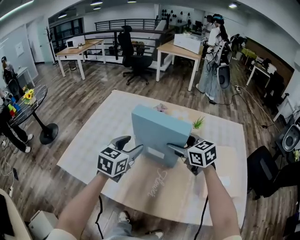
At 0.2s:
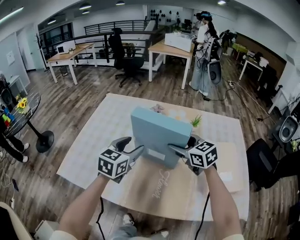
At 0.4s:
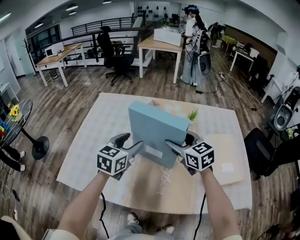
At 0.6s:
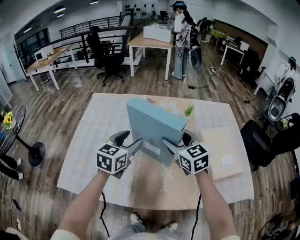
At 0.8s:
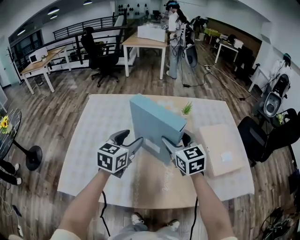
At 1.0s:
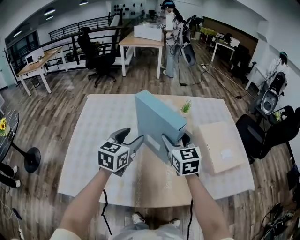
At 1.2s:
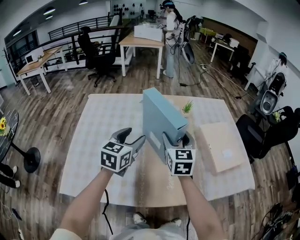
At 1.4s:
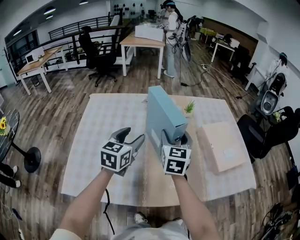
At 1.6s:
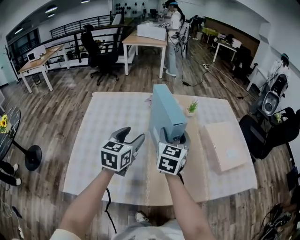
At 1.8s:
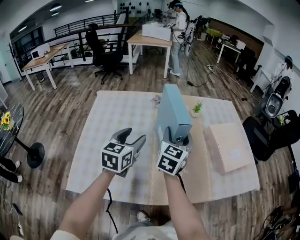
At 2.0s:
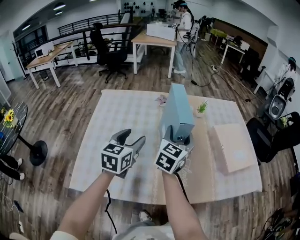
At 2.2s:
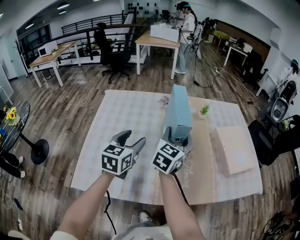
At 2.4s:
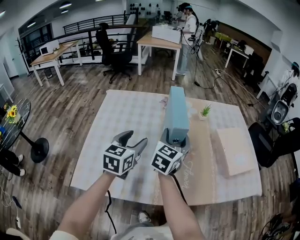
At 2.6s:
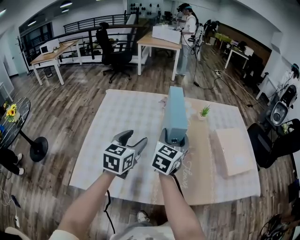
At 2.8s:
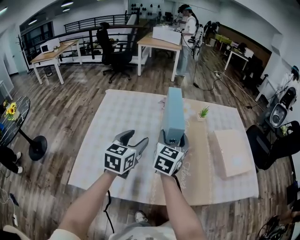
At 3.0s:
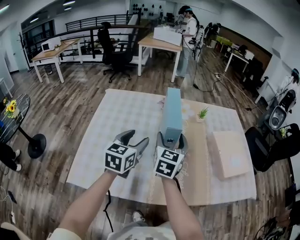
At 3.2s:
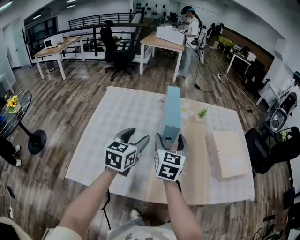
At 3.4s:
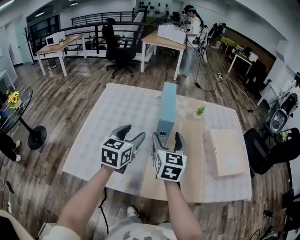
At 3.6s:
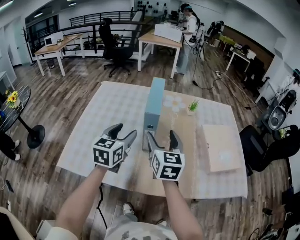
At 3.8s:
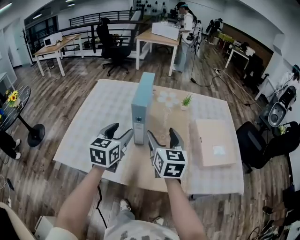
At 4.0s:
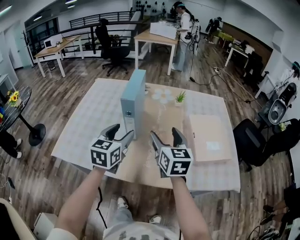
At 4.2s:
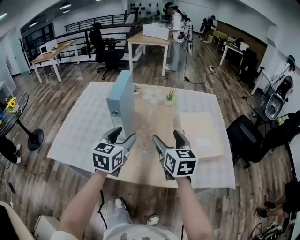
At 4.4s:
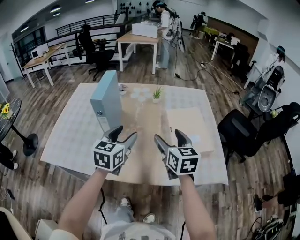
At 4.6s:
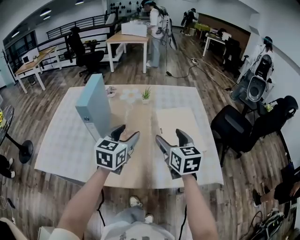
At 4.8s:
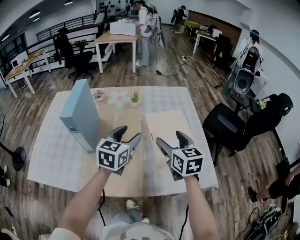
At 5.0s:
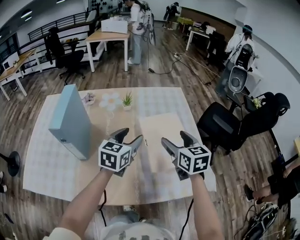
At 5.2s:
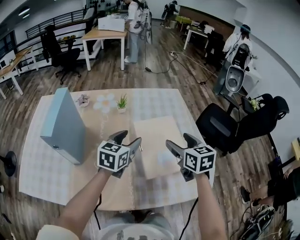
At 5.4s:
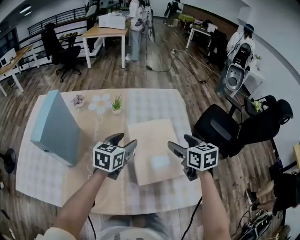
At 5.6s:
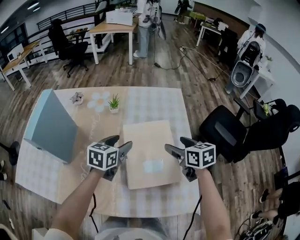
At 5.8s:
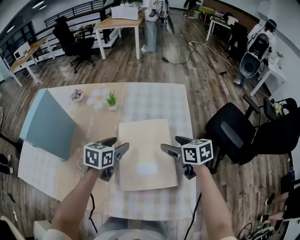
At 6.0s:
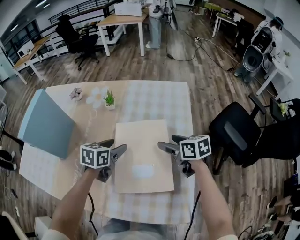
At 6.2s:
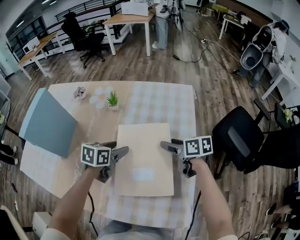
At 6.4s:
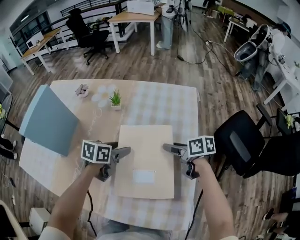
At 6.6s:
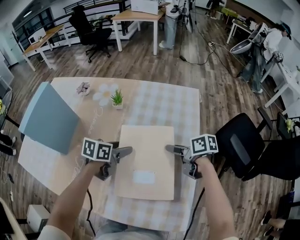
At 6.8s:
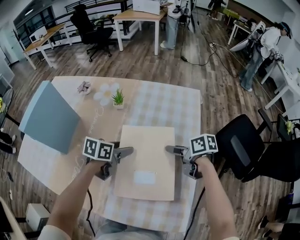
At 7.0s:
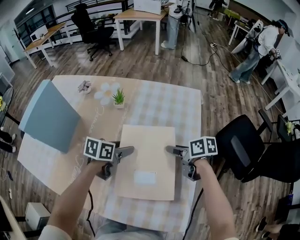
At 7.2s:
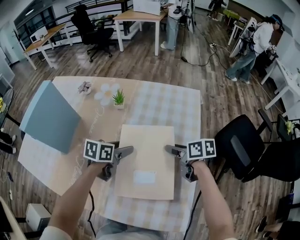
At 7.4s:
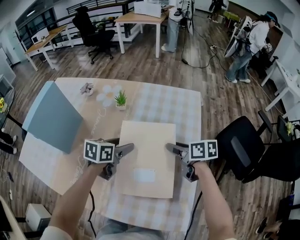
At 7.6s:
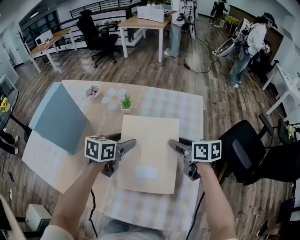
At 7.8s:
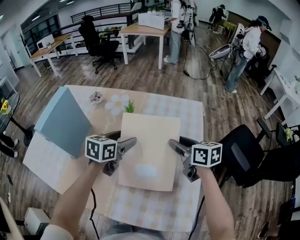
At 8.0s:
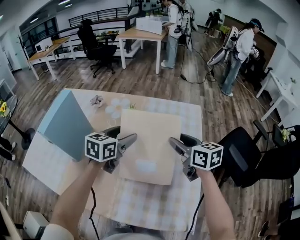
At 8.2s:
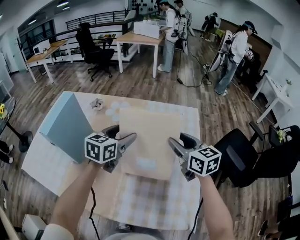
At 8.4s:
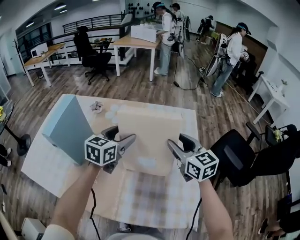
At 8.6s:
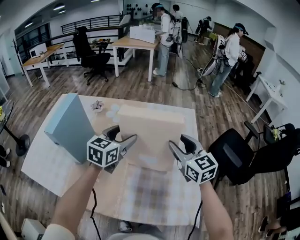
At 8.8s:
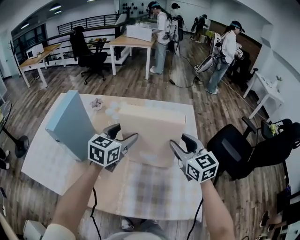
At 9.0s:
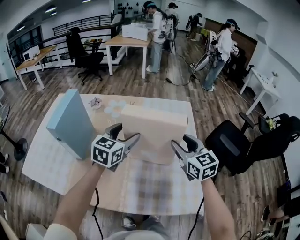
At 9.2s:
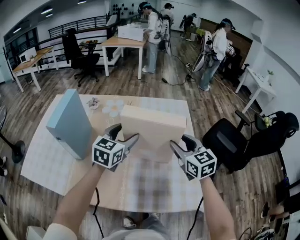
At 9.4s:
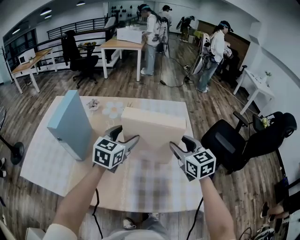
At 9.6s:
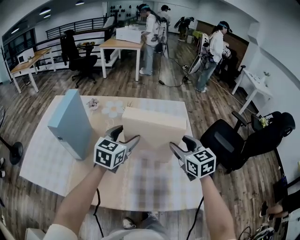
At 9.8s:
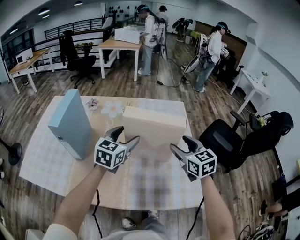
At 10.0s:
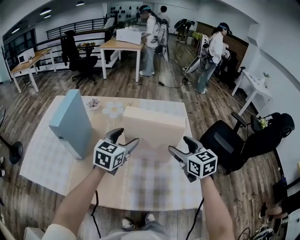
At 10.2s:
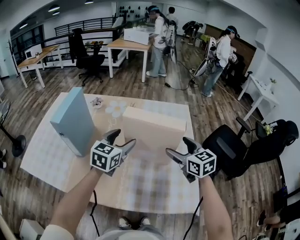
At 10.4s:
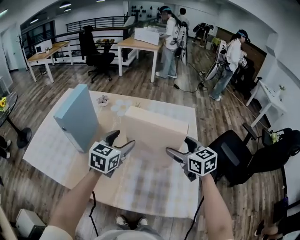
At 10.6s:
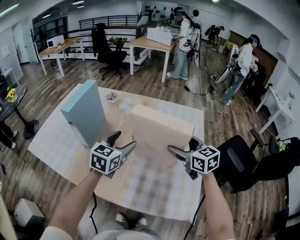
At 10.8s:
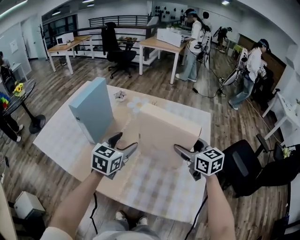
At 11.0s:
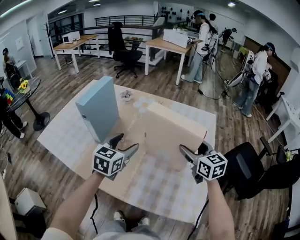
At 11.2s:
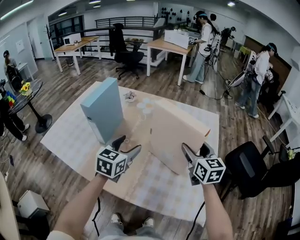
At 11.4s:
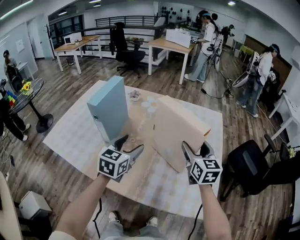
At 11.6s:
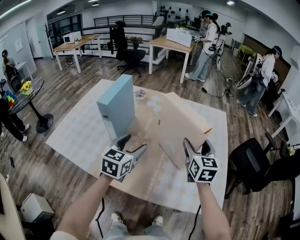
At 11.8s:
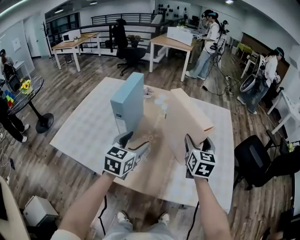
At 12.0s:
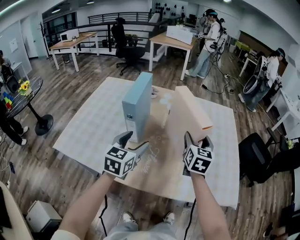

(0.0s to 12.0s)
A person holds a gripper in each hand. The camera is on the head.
0.0s - 1.6s: The left gripper shifts by approximately 5 cm, while the right gripper ends up approximately 5 cm from where it was, and swivels about 70 degrees.
1.6s - 3.0s: The right gripper shifts about 5 cm to the left.
3.0s - 4.4s: The grippers both shift to the right by about 30 cm. The right gripper swivels roughly 20 degrees.
4.4s - 6.0s: Both grippers move to the right, forward and downward, approximately 35 cm. The left gripper changes its angle by about 30 degrees. The right gripper swivels roughly 40 degrees.
6.0s - 7.6s: The left gripper changes place by about 5 cm; the right gripper changes place by about 5 cm, and closes.
7.6s - 9.0s: The right gripper is displaced upward and backward by approximately 15 cm, and changes its angle by roughly 50 degrees; the left gripper travels upward by roughly 15 cm, and swivels approximately 30 degrees.
9.0s - 10.4s: The left gripper shifts by about 5 cm. The right gripper opens its fingers.
10.4s - 12.0s: Both grippers move to the left, about 20 cm. The right gripper swivels approximately 40 degrees.

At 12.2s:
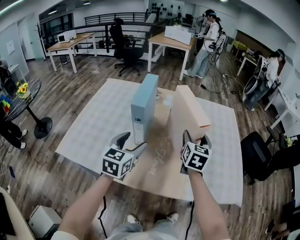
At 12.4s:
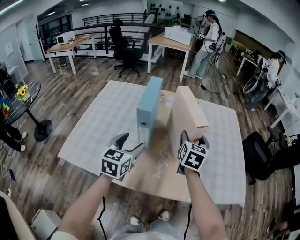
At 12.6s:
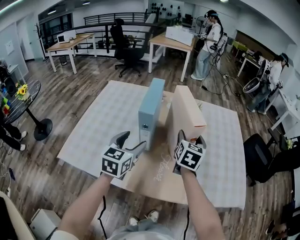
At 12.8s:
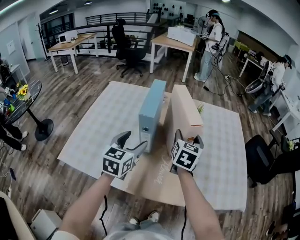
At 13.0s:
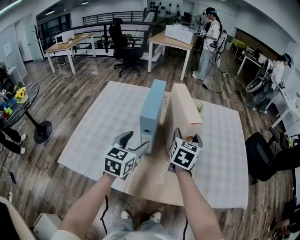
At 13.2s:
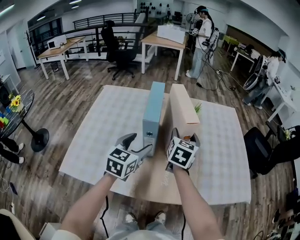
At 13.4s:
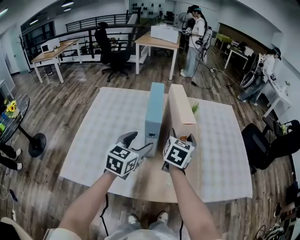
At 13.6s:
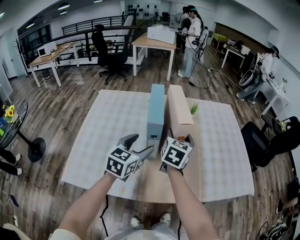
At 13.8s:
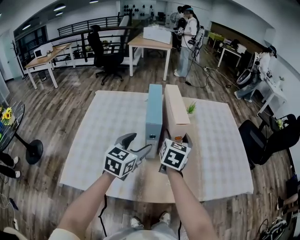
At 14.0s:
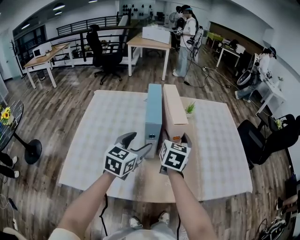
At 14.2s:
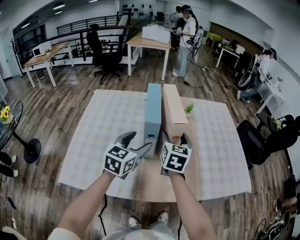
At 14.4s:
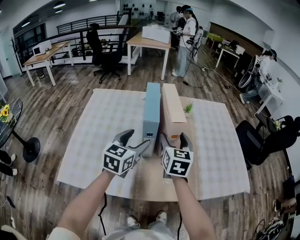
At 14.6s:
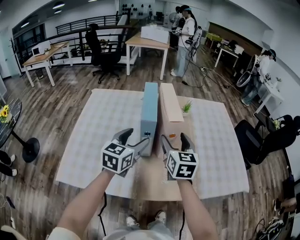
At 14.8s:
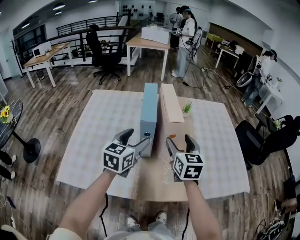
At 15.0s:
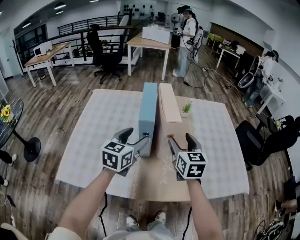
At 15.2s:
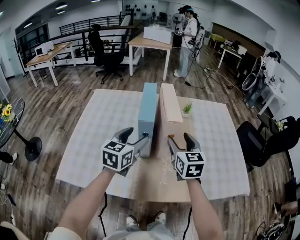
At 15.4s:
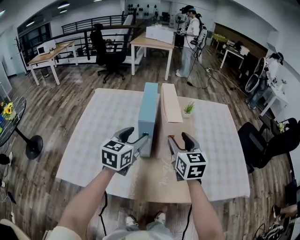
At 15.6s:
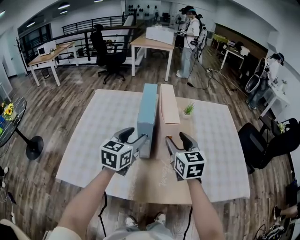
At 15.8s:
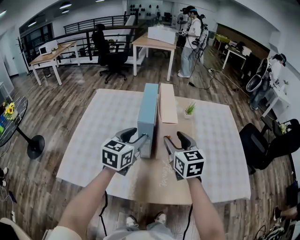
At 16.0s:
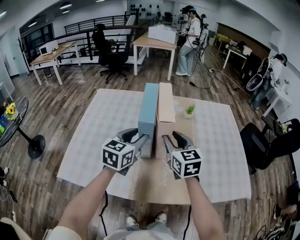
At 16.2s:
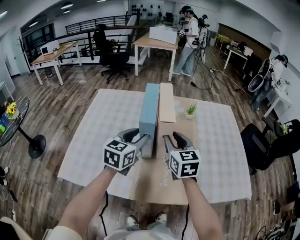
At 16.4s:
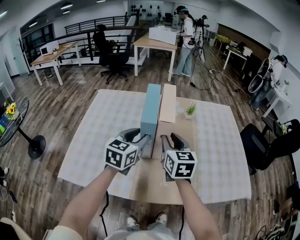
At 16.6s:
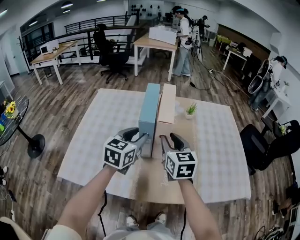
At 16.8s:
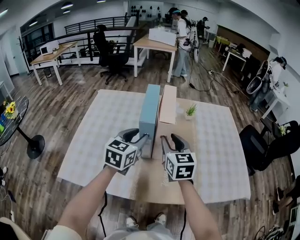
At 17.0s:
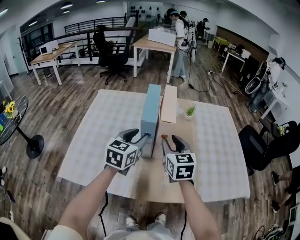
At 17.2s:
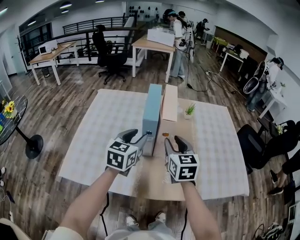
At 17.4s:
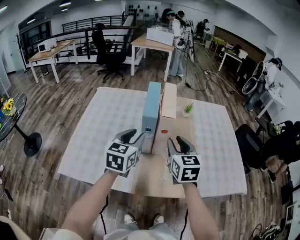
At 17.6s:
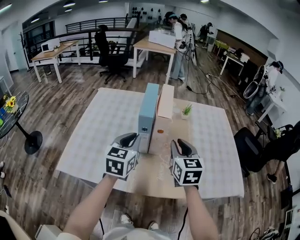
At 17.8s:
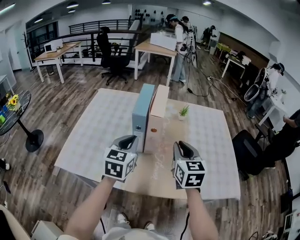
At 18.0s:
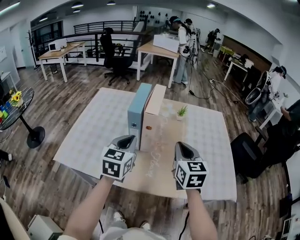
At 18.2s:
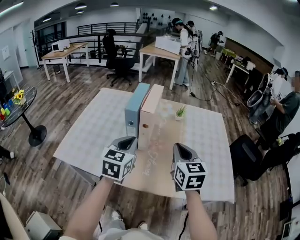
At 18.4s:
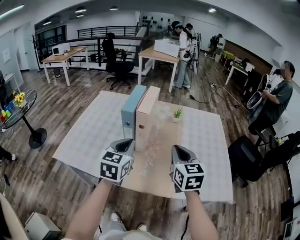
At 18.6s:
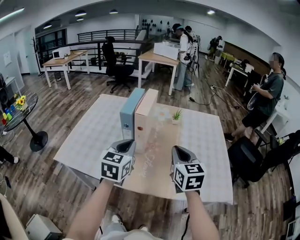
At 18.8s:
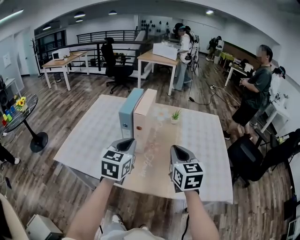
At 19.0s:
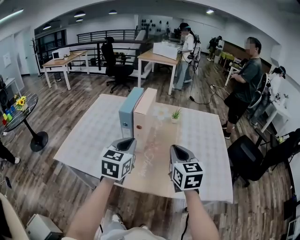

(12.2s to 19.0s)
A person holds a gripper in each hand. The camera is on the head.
12.2s - 13.6s: The left gripper goes roughly 5 cm to the left. The right gripper travels to the left by some 15 cm.
13.6s - 15.0s: The right gripper ends up roughly 5 cm from where it was, and rotates approximately 20 degrees.
15.0s - 16.2s: The right gripper closes, while the left gripper closes its fingers.
16.2s - 17.6s: Both grippers travel together backward, some 5 cm. The left gripper closes up.
17.6s - 19.0s: The two grippers go roughly 10 cm to the right and backward.

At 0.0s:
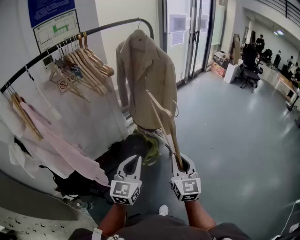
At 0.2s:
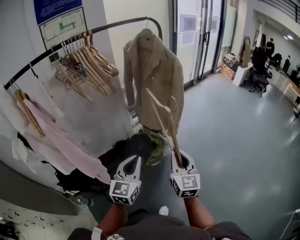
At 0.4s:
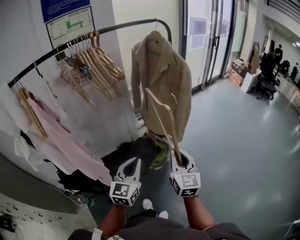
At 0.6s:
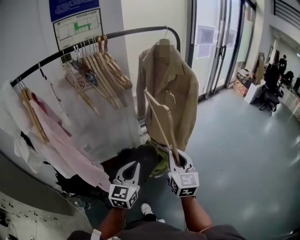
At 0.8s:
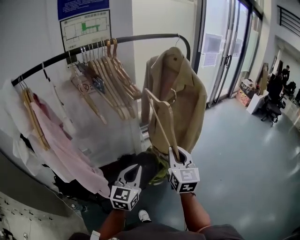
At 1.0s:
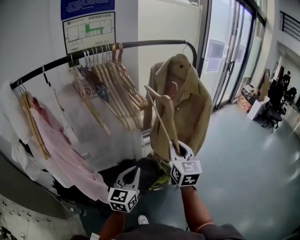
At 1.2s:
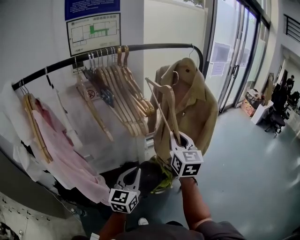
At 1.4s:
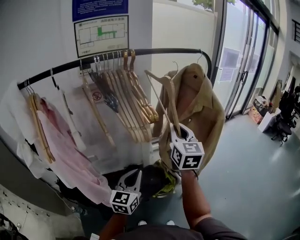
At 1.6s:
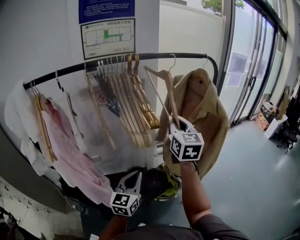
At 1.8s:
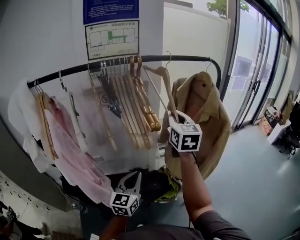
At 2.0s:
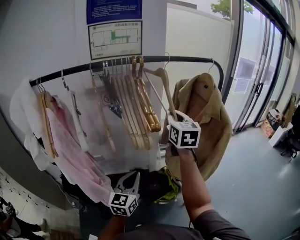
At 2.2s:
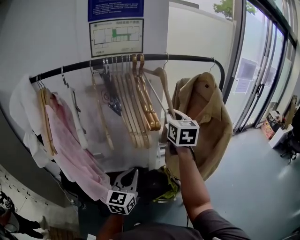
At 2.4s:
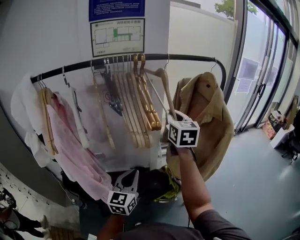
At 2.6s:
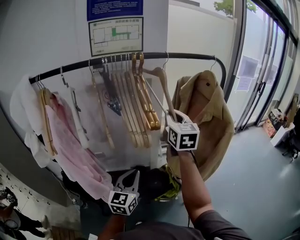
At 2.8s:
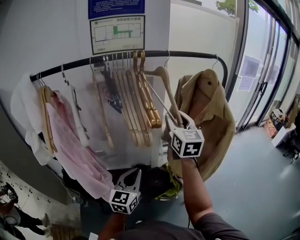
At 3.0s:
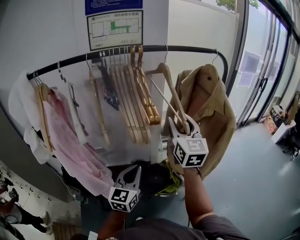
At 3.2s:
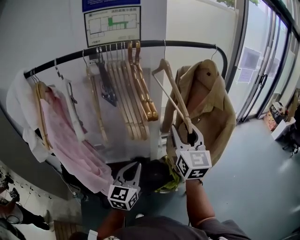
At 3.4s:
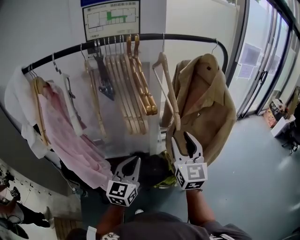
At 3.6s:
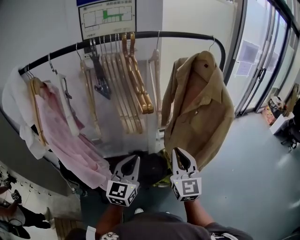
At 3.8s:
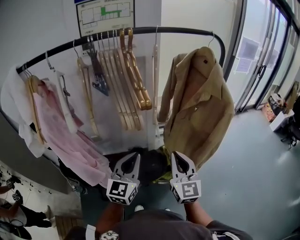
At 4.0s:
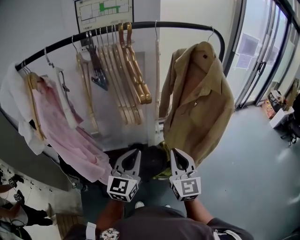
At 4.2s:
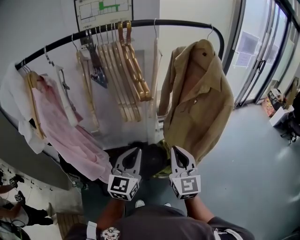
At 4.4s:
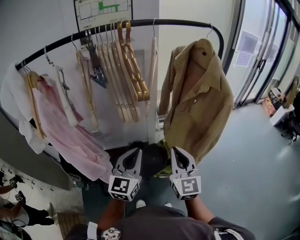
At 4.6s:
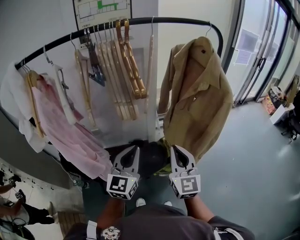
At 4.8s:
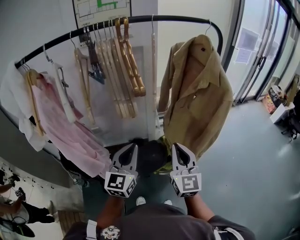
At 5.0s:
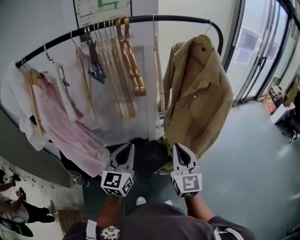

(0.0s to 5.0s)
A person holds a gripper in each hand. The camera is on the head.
0.0s - 1.6s: The left gripper is displaced forward and to the left by about 20 cm, and changes its angle by about 20 degrees. The right gripper moves forward, upward and to the left, about 40 cm, and swivels about 20 degrees.
1.6s - 3.4s: The right gripper travels backward and downward by about 10 cm, and opens its fingers.
3.4s - 5.0s: The right gripper shifts approximately 10 cm backward and downward, and closes.
